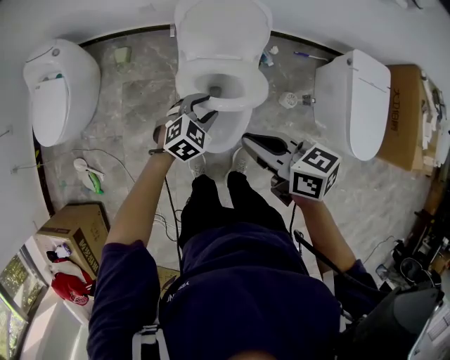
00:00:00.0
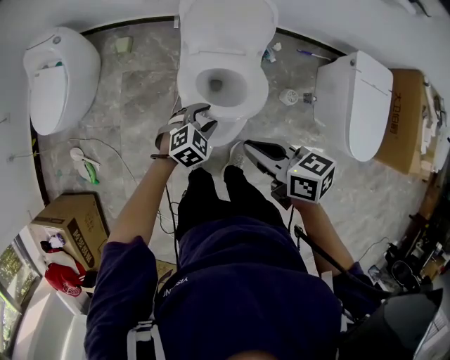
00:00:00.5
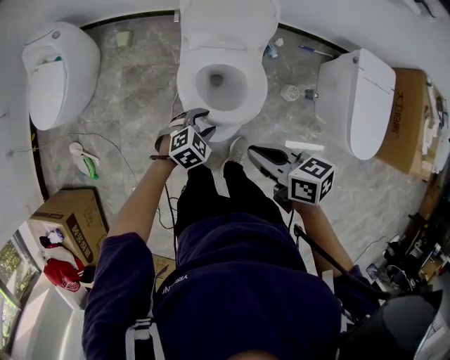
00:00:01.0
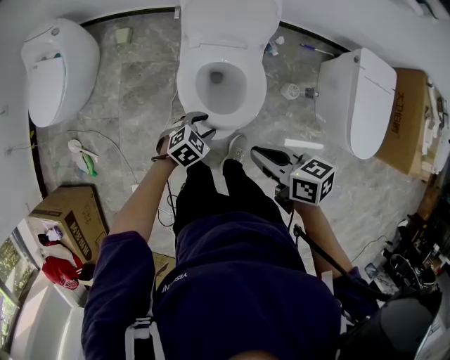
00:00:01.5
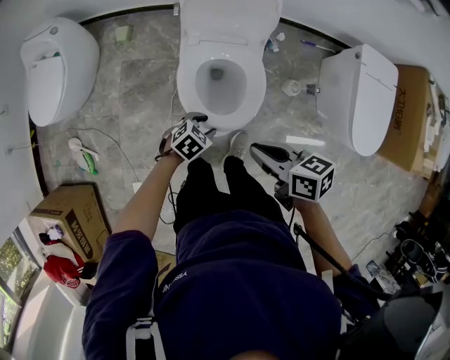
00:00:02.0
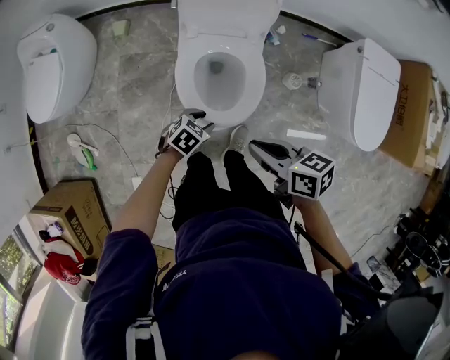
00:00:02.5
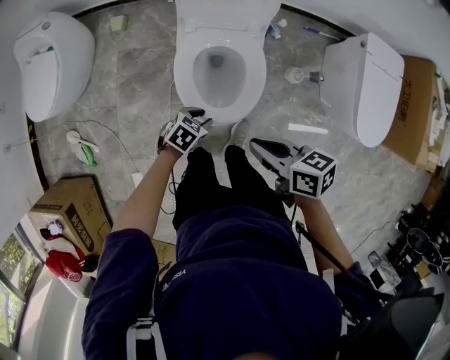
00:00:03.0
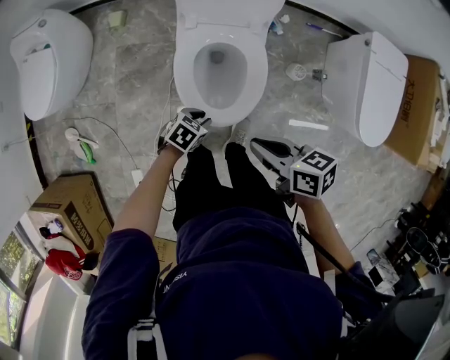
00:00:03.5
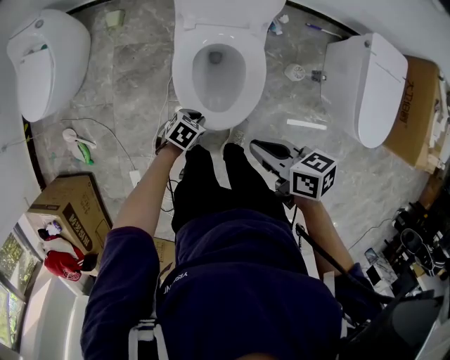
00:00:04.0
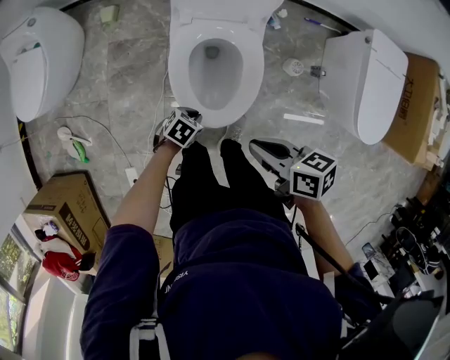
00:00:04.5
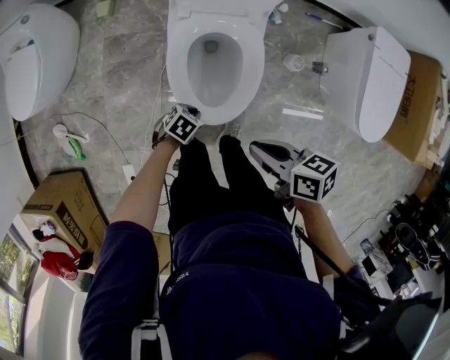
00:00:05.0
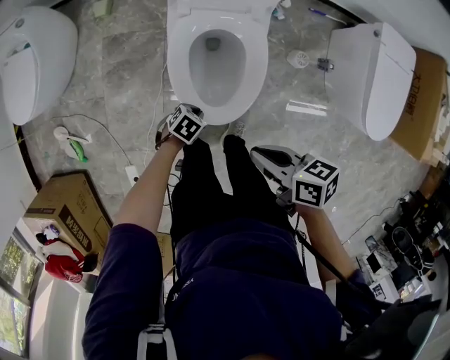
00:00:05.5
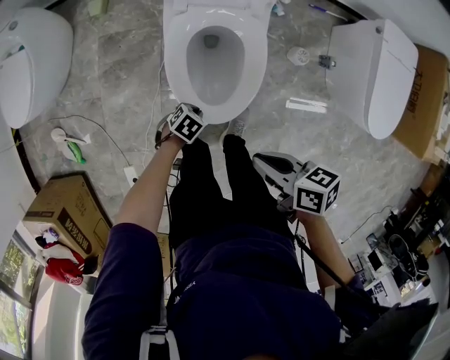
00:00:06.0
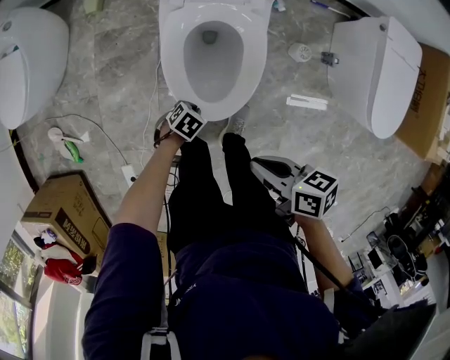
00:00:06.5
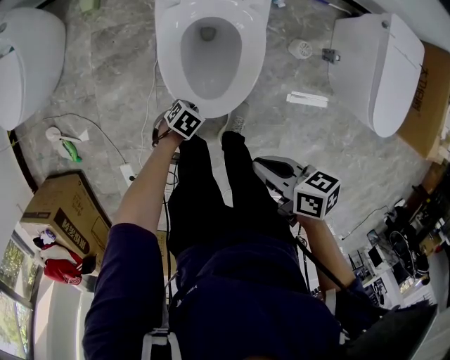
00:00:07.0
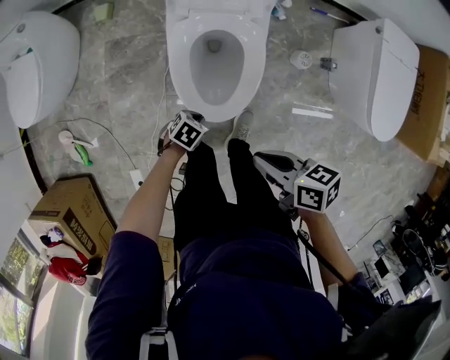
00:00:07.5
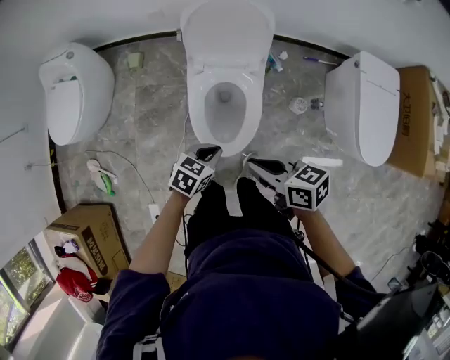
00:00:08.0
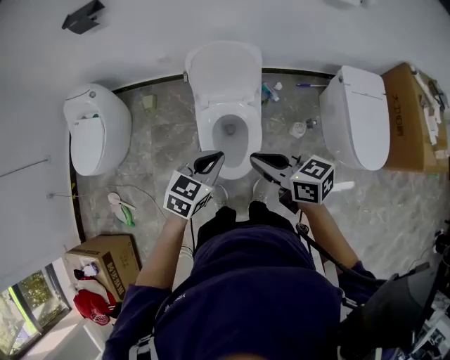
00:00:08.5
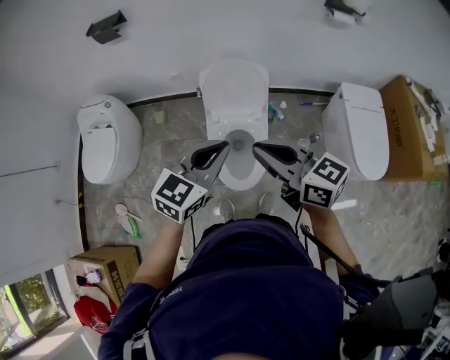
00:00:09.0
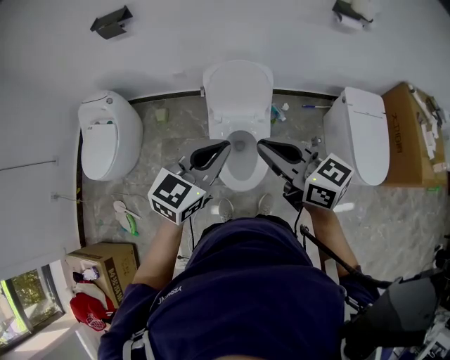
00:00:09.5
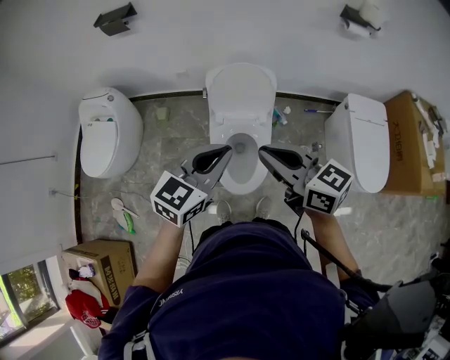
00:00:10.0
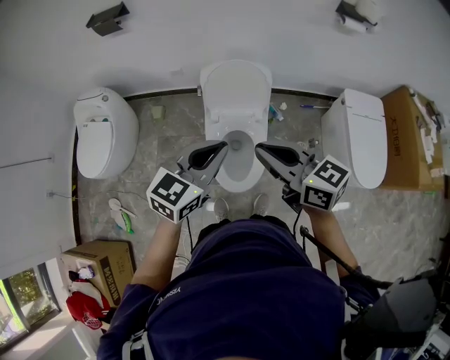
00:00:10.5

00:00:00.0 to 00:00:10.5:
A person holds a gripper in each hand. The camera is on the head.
00:00:00.0 to 00:00:02.0: The right gripper moves roughly 10 cm; the left gripper shifts by about 15 cm, and rotates approximately 30 degrees.
00:00:02.0 to 00:00:04.0: The left gripper travels downward by approximately 5 cm, and closes its fingers.
00:00:04.0 to 00:00:06.5: The left gripper travels downward by some 15 cm. The right gripper is displaced downward by about 10 cm.
00:00:06.5 to 00:00:08.5: The left gripper shifts about 50 cm upward, and tilts its fingers roughly 30 degrees upward. The right gripper travels upward by about 25 cm, and swivels some 40 degrees.
00:00:08.5 to 00:00:10.5: The two grippers go about 15 cm upward.

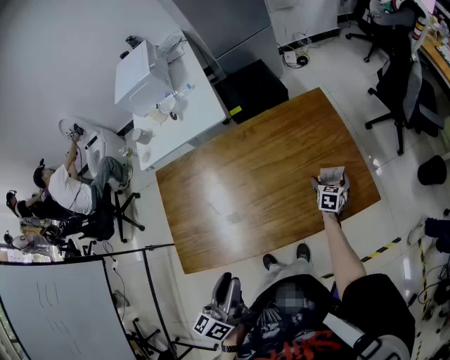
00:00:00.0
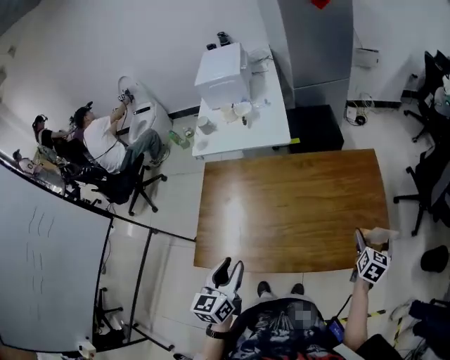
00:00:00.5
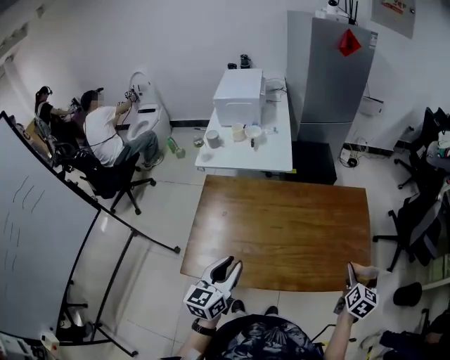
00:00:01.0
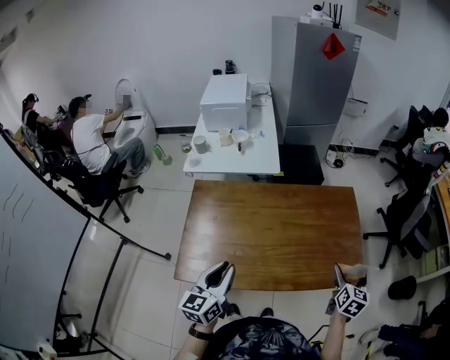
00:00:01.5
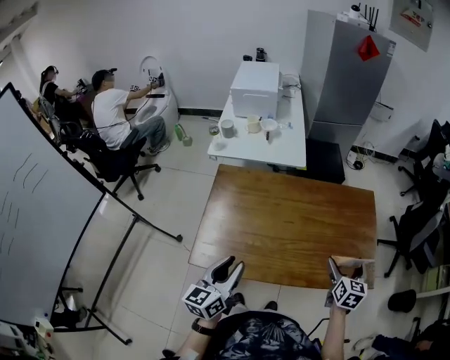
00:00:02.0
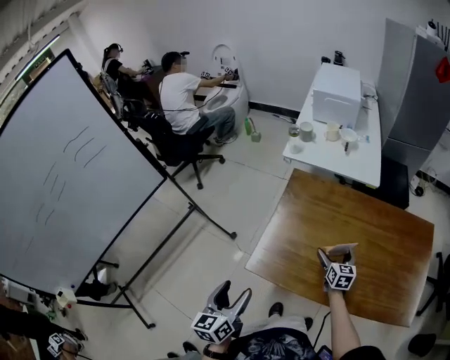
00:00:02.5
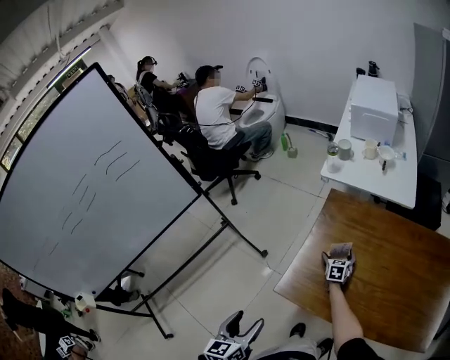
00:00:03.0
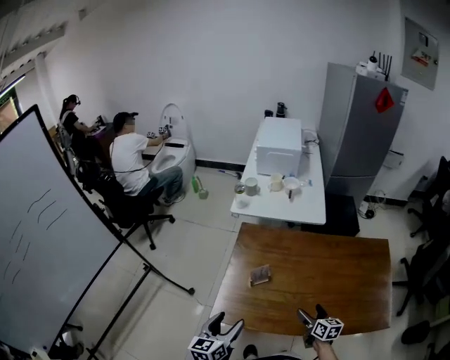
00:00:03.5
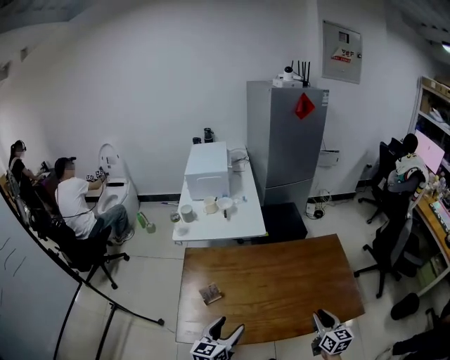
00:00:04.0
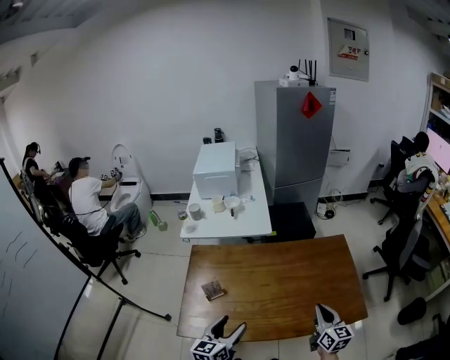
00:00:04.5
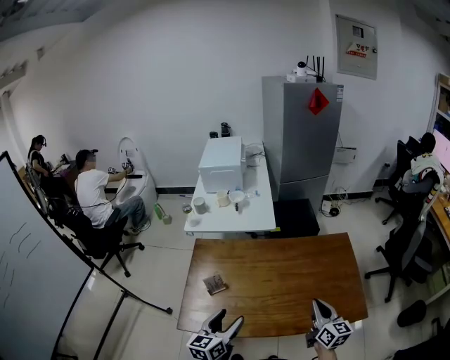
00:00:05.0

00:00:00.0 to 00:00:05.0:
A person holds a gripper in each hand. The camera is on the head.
00:00:00.0 to 00:00:02.5: The left gripper moves approximately 35 cm, swivels approximately 40 degrees, and opens up. Meanwhile the right gripper moves about 50 cm, and changes its angle by approximately 50 degrees.
00:00:02.5 to 00:00:05.0: The left gripper ends up roughly 25 cm from where it was, and swivels approximately 30 degrees. The right gripper shifts by approximately 35 cm, turns by about 30 degrees, and closes up.

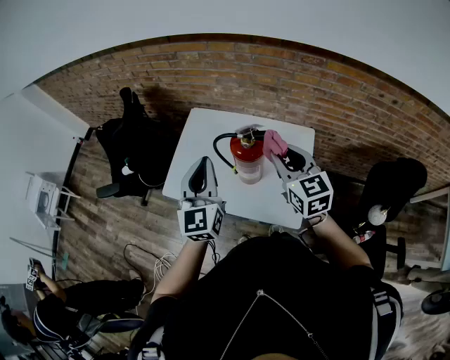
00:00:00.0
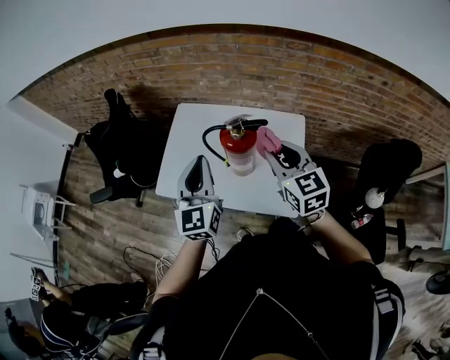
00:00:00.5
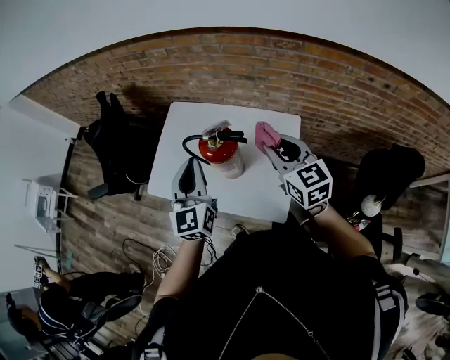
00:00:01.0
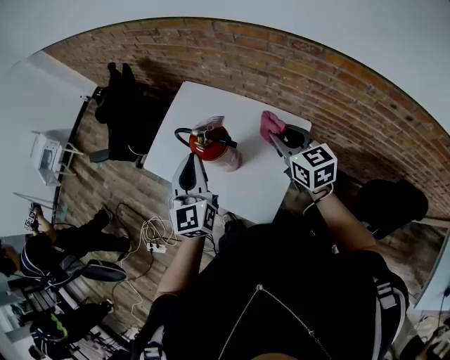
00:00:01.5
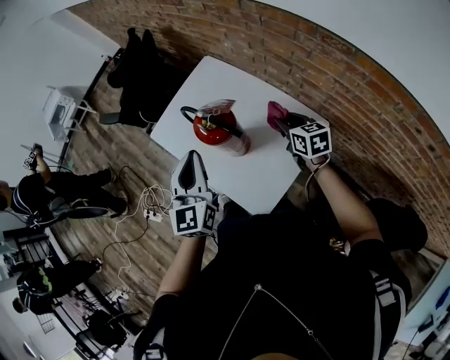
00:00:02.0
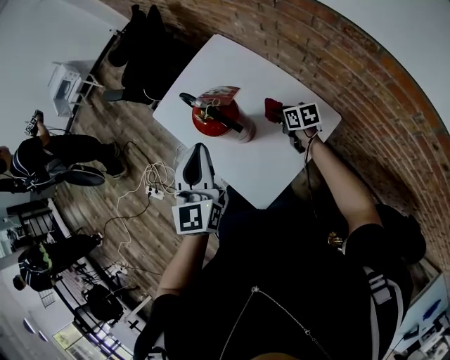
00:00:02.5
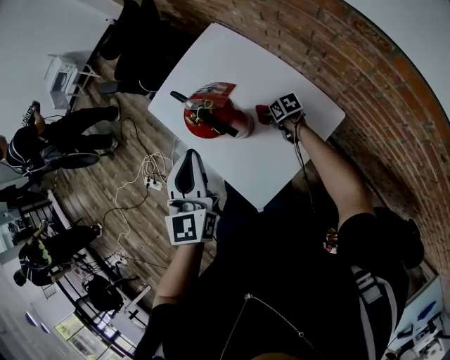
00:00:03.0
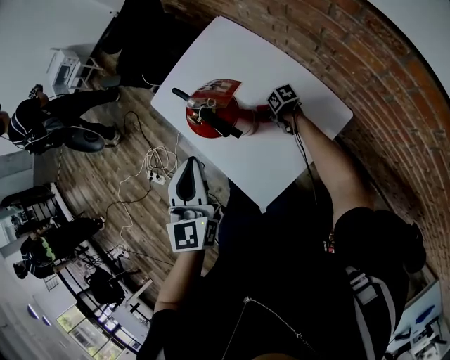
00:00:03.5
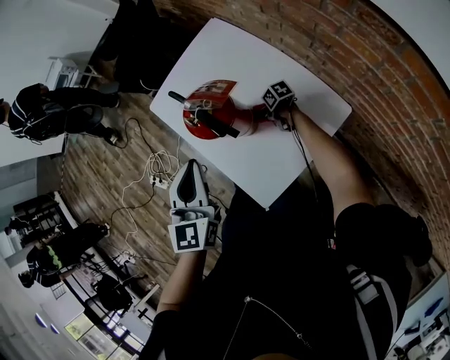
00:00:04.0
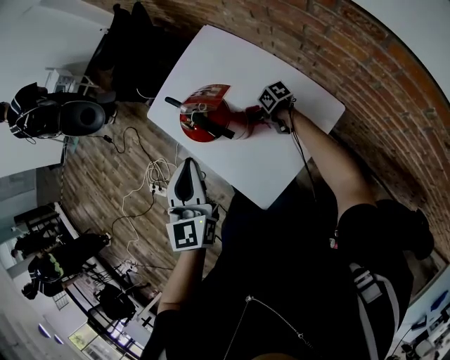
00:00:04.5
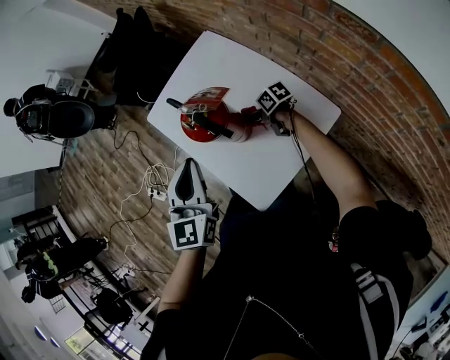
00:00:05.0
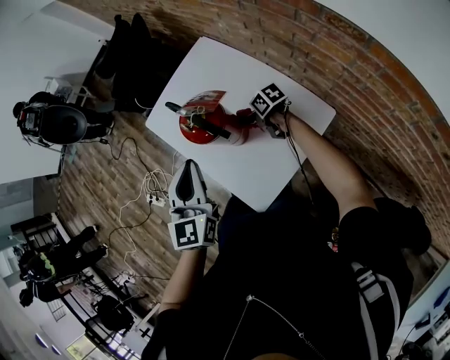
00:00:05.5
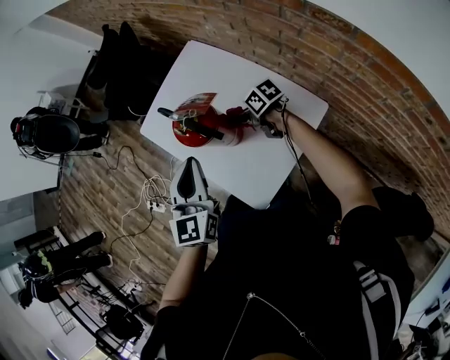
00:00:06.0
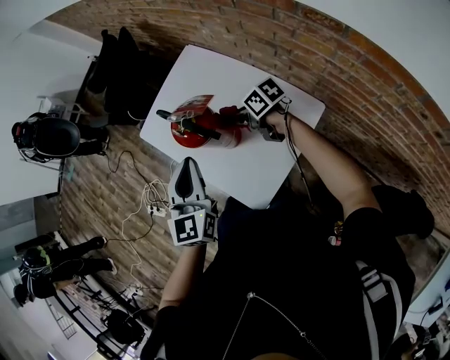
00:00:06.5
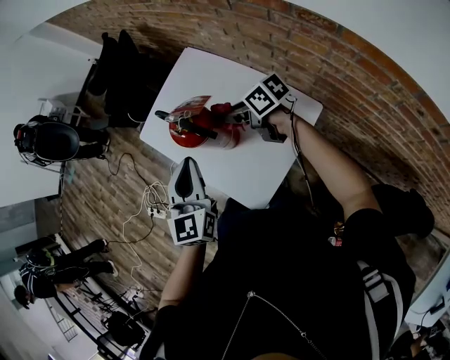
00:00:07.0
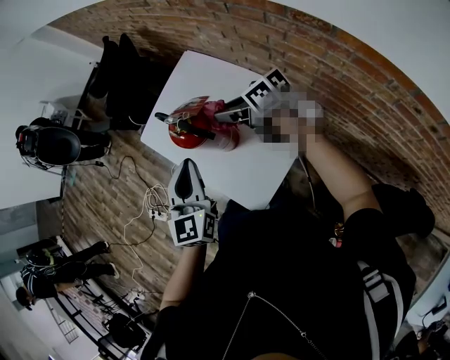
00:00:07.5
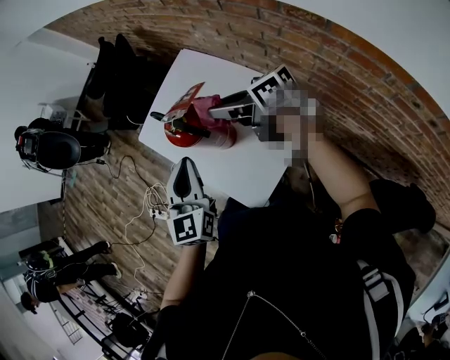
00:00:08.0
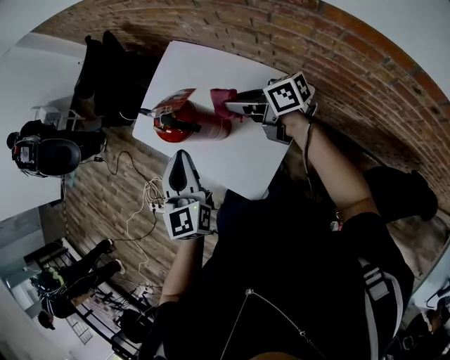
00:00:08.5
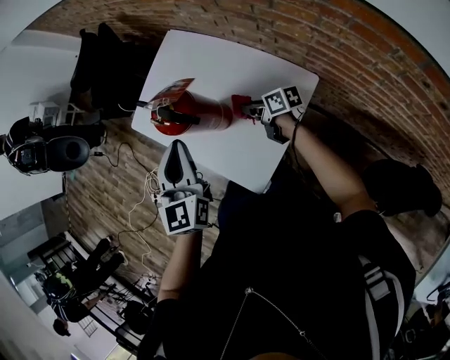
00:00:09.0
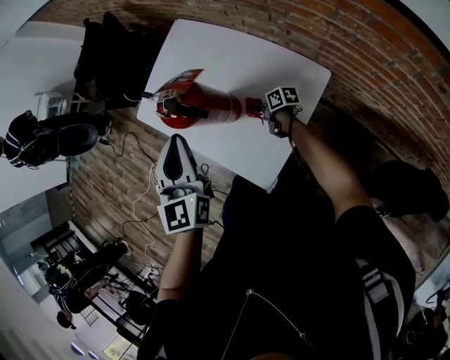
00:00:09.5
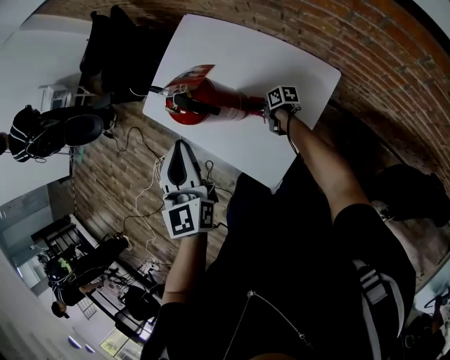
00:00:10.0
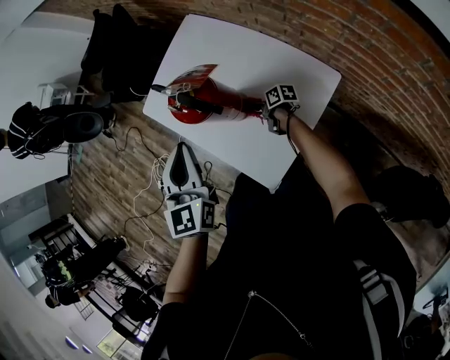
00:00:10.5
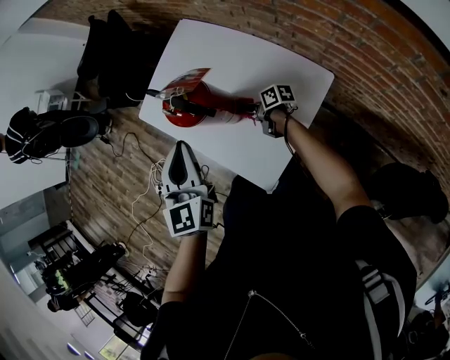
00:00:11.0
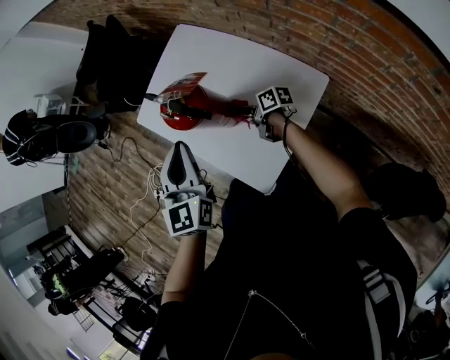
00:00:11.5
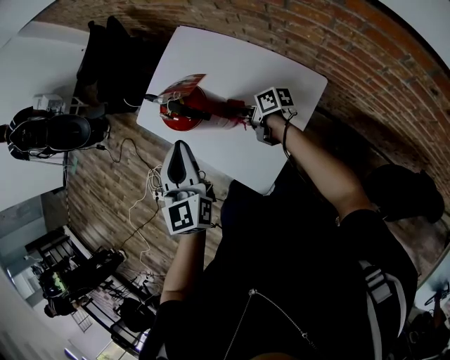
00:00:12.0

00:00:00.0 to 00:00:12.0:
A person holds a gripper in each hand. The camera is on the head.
00:00:00.0 to 00:00:02.0: The left gripper changes place by about 15 cm, and turns by about 30 degrees. Meanwhile the right gripper ends up approximately 30 cm from where it was, and swivels some 40 degrees.
00:00:02.0 to 00:00:04.0: The right gripper goes about 30 cm downward, and rotates approximately 50 degrees, while the left gripper heads downward, covering some 5 cm.
00:00:04.0 to 00:00:06.0: The right gripper heads upward, covering roughly 20 cm.
00:00:06.0 to 00:00:08.0: The right gripper shifts approximately 25 cm upward, and changes its angle by roughly 30 degrees.
00:00:08.0 to 00:00:10.0: The right gripper travels downward by approximately 40 cm, and swivels some 50 degrees.
00:00:10.0 to 00:00:12.0: The right gripper moves upward, roughly 15 cm.
